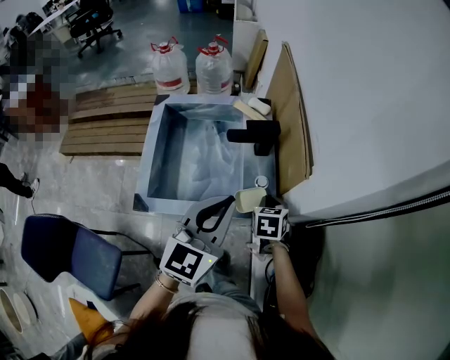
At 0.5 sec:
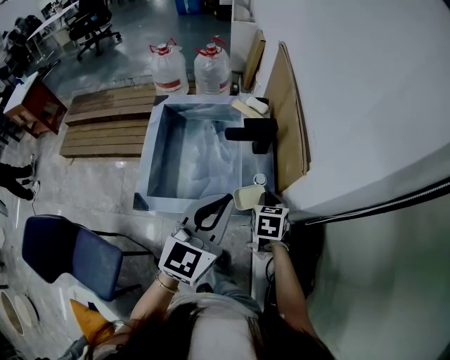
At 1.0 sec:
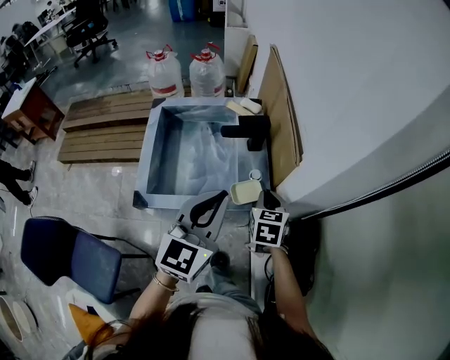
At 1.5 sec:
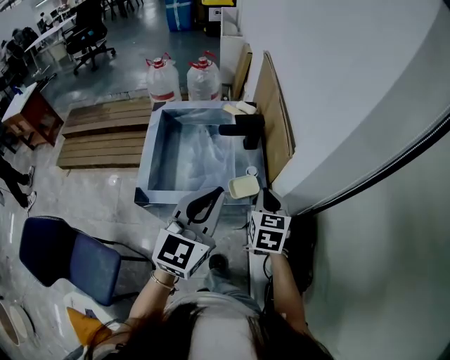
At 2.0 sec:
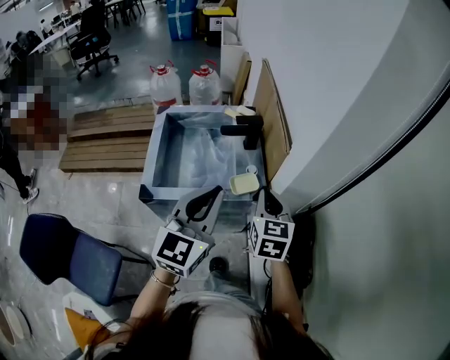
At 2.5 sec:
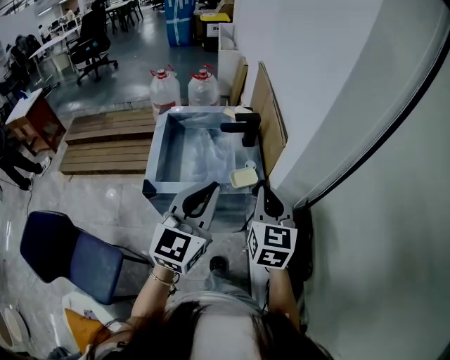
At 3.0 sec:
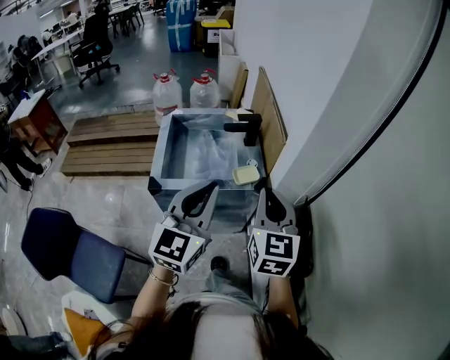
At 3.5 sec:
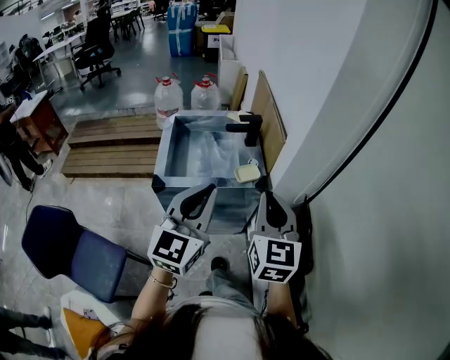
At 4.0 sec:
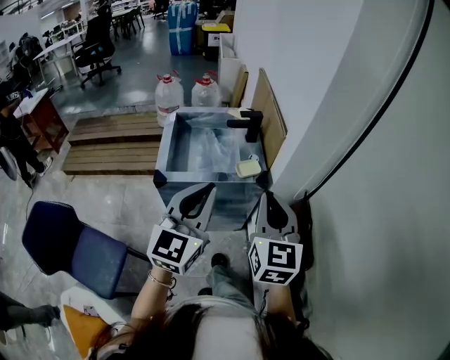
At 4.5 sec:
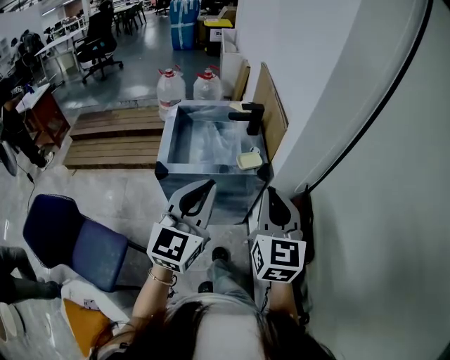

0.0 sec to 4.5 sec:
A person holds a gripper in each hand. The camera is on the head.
0.0 sec to 2.0 sec: The right gripper moves upward and backward, about 20 cm, and turns by roughly 30 degrees, while the left gripper heads backward and upward, covering roughly 10 cm.
2.0 sec to 4.5 sec: The left gripper is displaced backward by roughly 15 cm. The right gripper shifts about 25 cm backward and upward.

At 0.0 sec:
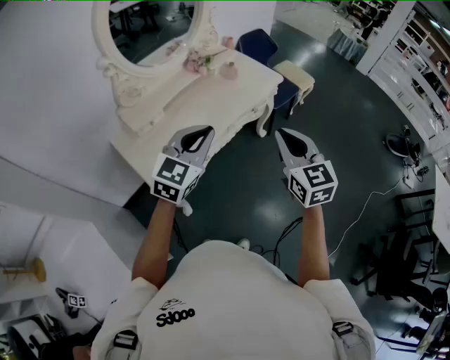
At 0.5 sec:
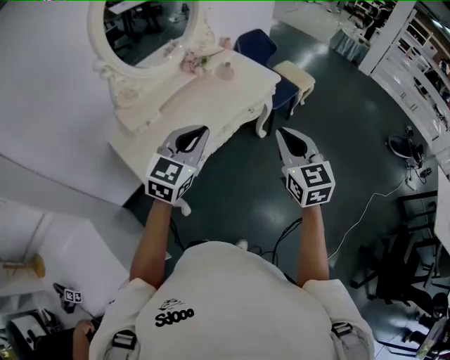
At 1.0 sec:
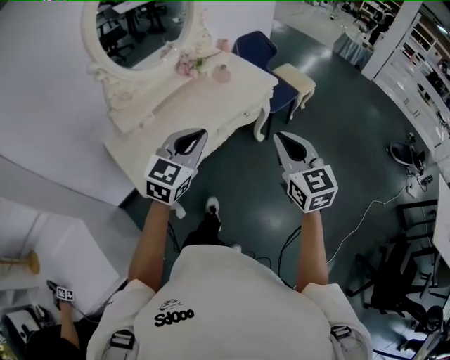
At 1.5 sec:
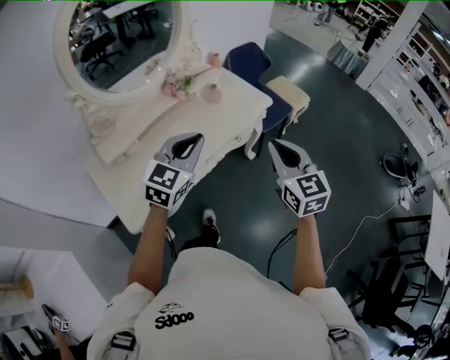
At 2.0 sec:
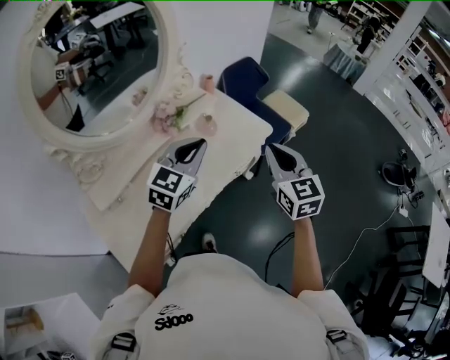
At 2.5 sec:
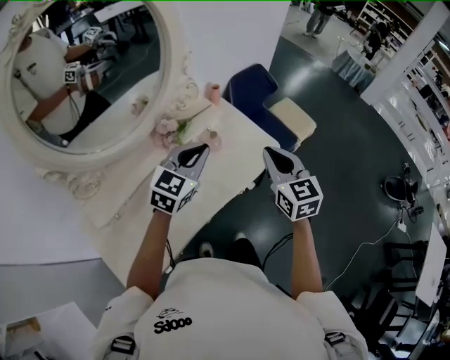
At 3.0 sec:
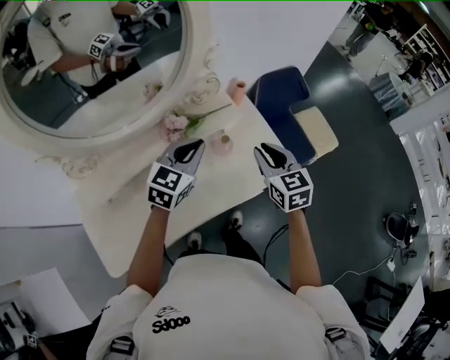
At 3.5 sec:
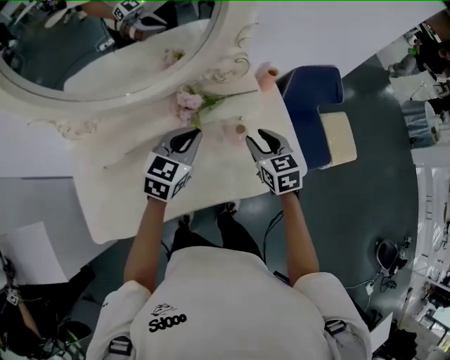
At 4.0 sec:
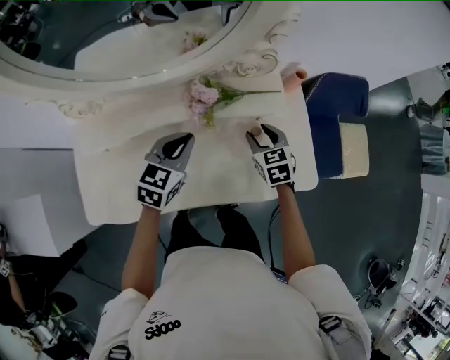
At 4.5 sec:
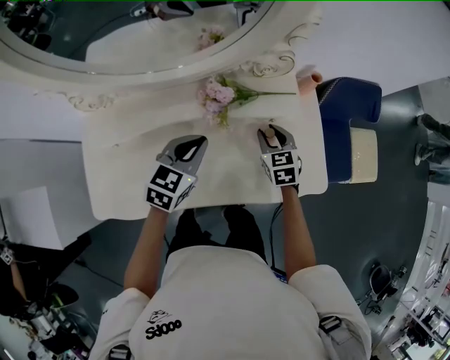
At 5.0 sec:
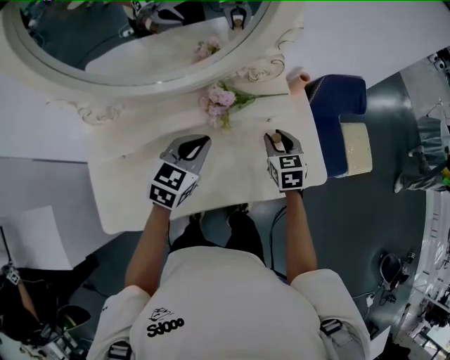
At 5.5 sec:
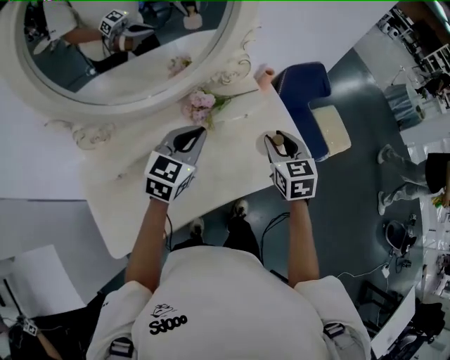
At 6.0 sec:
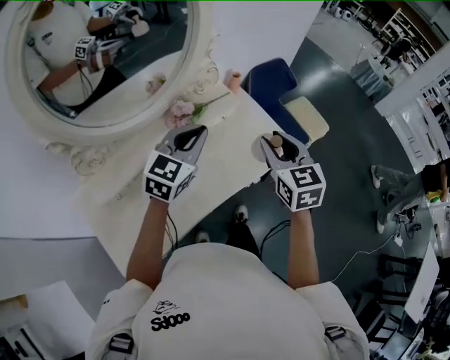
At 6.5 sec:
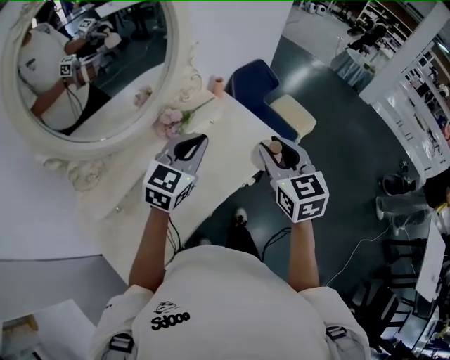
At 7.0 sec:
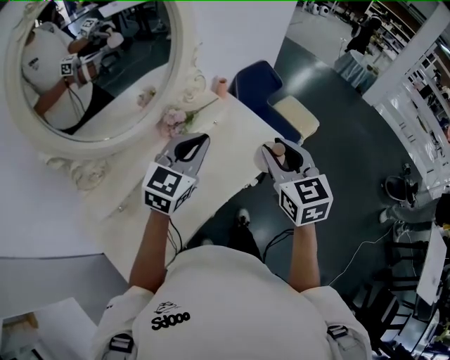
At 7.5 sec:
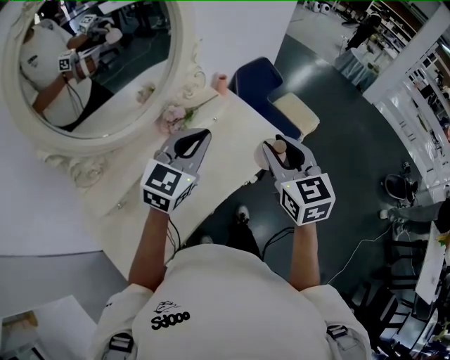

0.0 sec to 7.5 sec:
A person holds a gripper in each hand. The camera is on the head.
0.0 sec to 2.0 sec: The grippers both shift forward by some 35 cm.
2.0 sec to 4.0 sec: The right gripper ends up approximately 40 cm from where it was, points its fingers about 30 degrees further downward, and opens up, while the left gripper changes place by about 25 cm, and swivels approximately 50 degrees.
4.0 sec to 5.5 sec: The left gripper heads upward, covering about 10 cm, and swivels some 20 degrees, while the right gripper shifts about 20 cm upward and backward, and rotates some 20 degrees.
5.5 sec to 7.5 sec: The right gripper goes roughly 20 cm upward and backward. The left gripper moves upward, to the right and backward, some 15 cm, and swivels roughly 30 degrees.

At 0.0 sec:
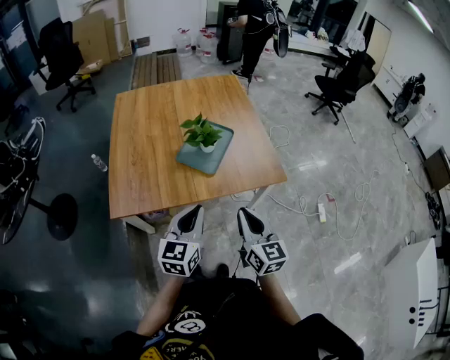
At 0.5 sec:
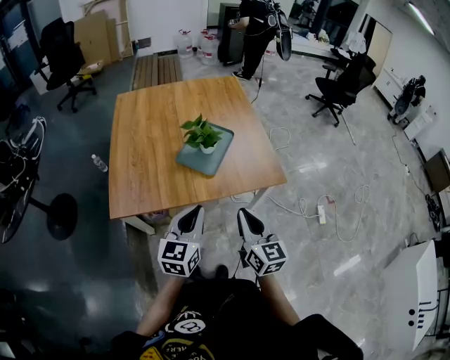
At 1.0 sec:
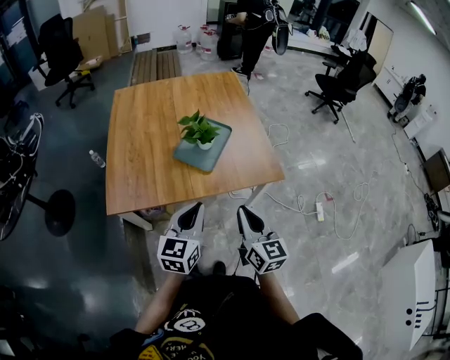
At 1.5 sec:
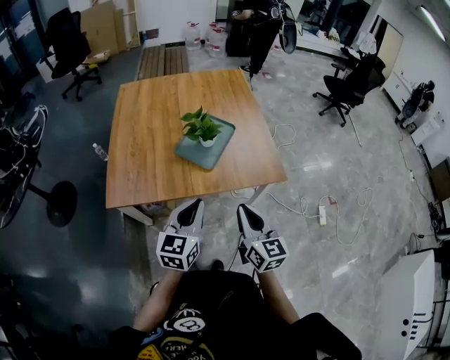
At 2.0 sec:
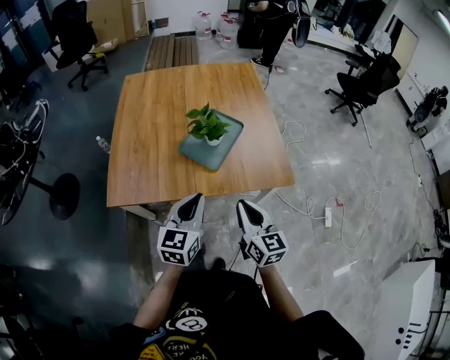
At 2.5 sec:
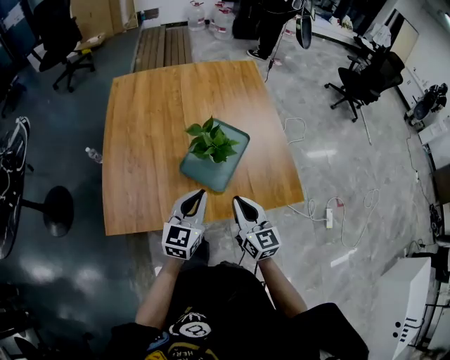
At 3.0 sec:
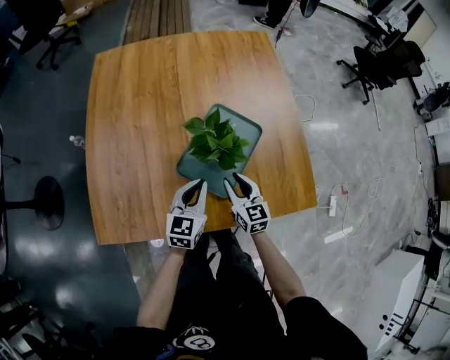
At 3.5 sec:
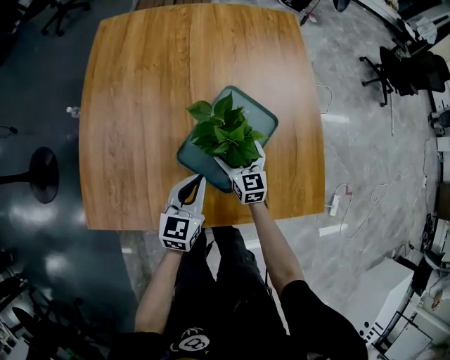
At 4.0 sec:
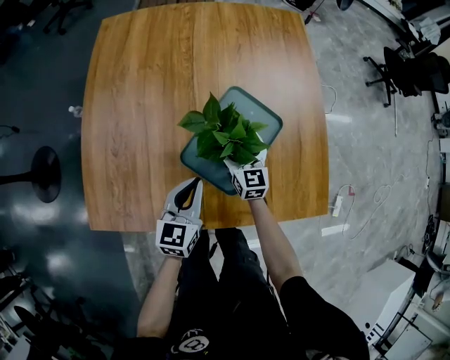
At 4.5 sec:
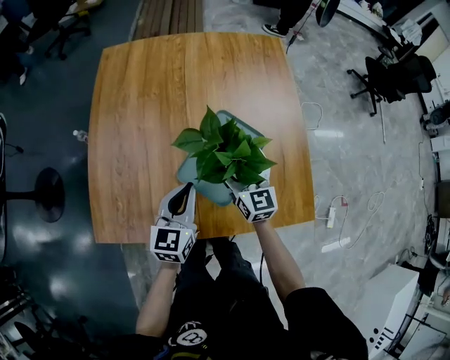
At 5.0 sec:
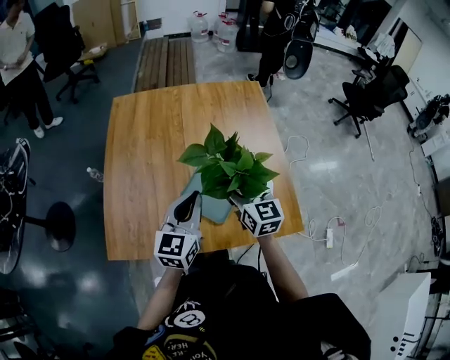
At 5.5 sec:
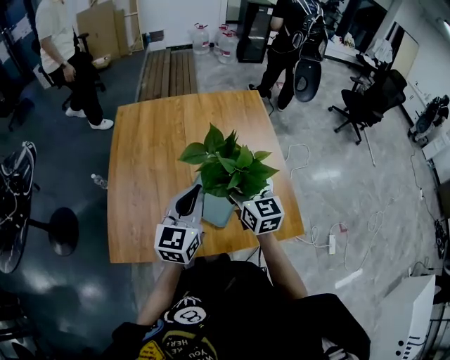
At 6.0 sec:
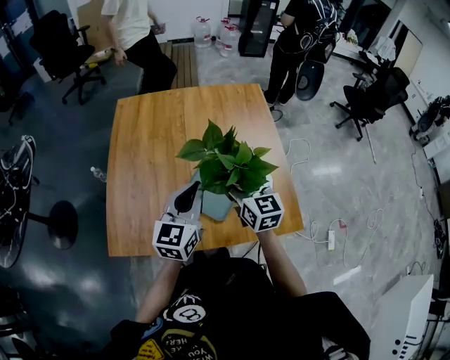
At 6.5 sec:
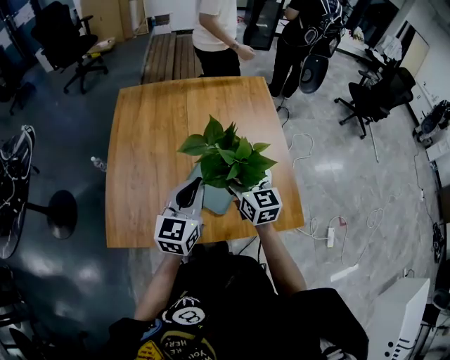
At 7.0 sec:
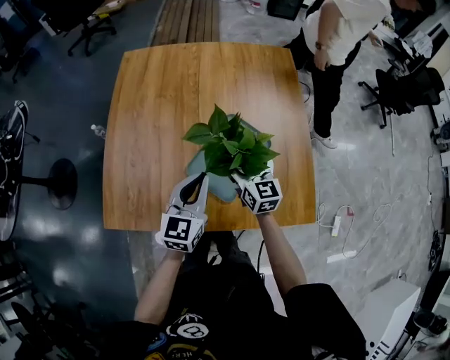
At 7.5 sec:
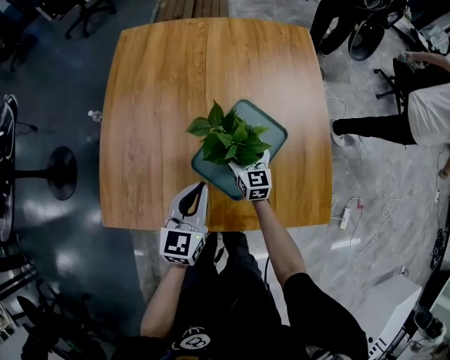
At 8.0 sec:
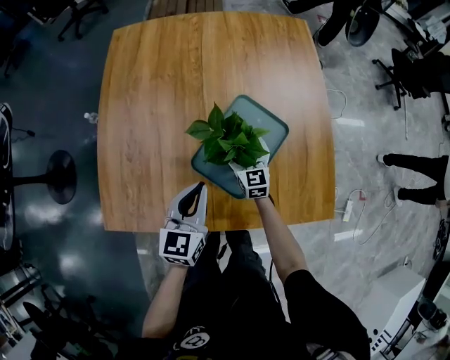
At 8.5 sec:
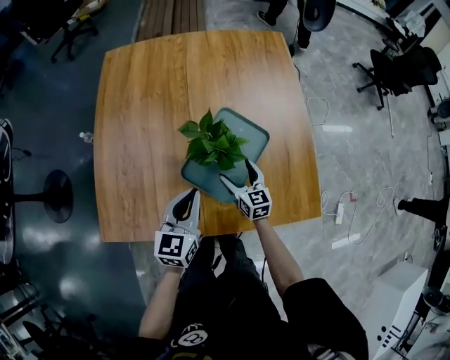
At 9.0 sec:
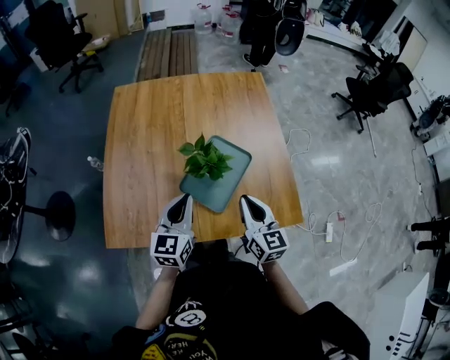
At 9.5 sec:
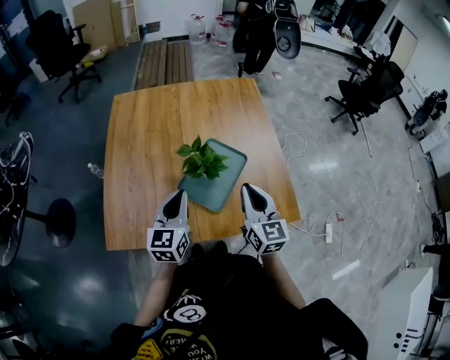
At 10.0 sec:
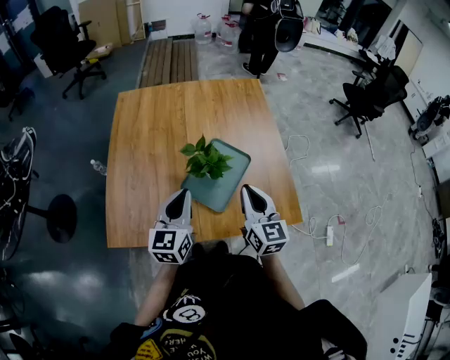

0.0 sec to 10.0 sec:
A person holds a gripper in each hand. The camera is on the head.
0.0 sec to 2.0 sec: The two grippers go approximately 5 cm forward.
2.0 sec to 4.0 sec: The two grippers go some 40 cm forward and downward. The right gripper opens.
4.0 sec to 6.0 sec: Both grippers move upward, approximately 30 cm.
6.0 sec to 8.0 sec: The left gripper is displaced downward by roughly 20 cm, while the right gripper travels downward by some 35 cm.
8.0 sec to 10.0 sec: The left gripper is displaced upward and backward by roughly 20 cm. The right gripper heads upward and backward, covering roughly 40 cm, and closes.

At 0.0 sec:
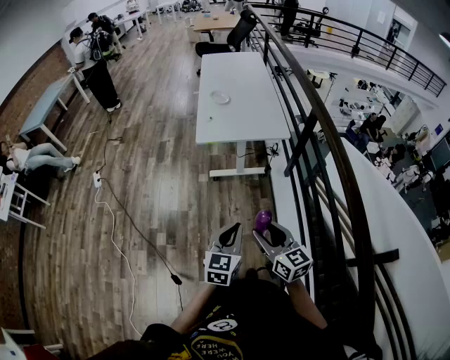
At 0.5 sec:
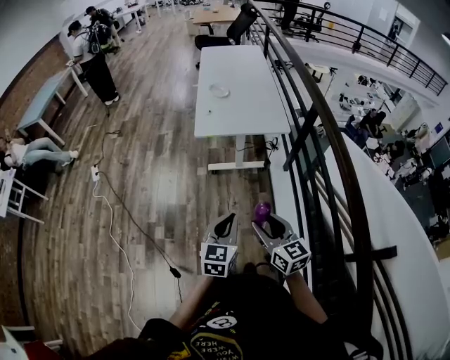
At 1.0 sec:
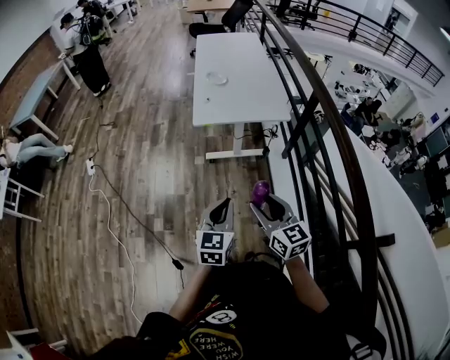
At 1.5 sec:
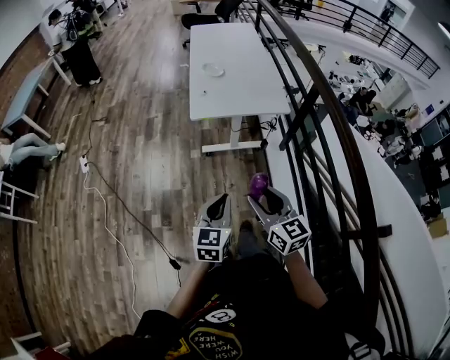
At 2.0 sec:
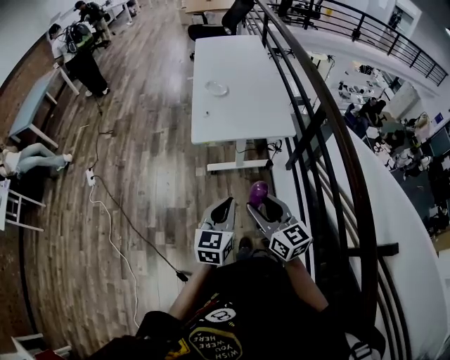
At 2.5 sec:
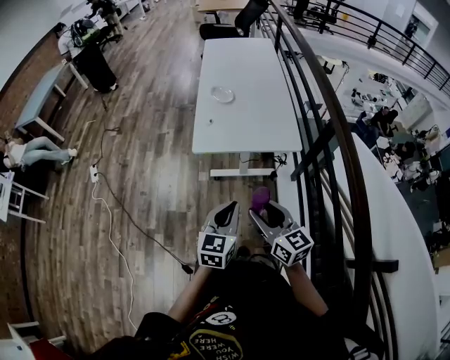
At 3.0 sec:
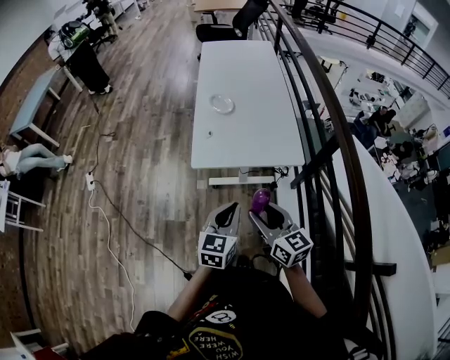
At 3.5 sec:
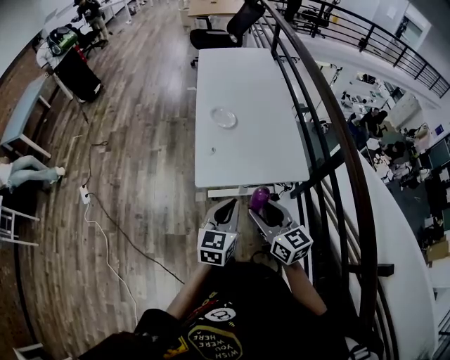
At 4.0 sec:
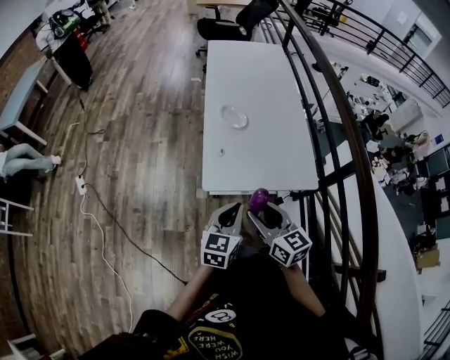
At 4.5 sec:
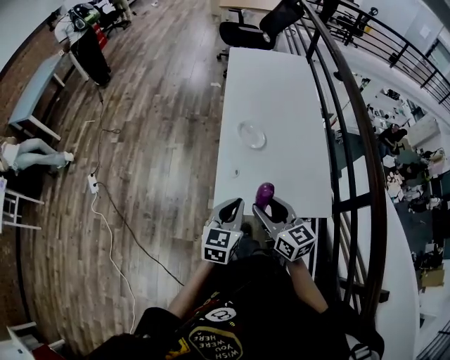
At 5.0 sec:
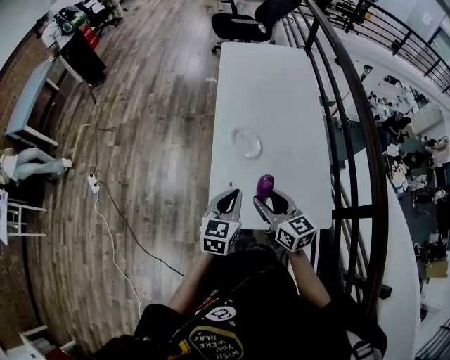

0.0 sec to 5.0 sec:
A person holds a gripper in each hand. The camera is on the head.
0.0 sec to 2.5 sec: Both grippers move forward, roughly 25 cm.
2.5 sec to 5.0 sec: Both grippers are carried forward, roughly 50 cm.
